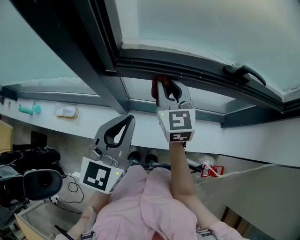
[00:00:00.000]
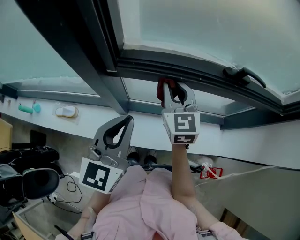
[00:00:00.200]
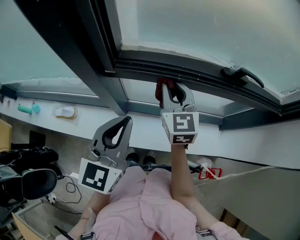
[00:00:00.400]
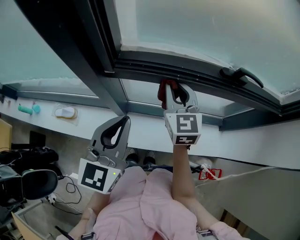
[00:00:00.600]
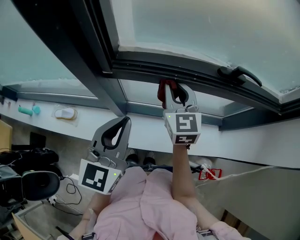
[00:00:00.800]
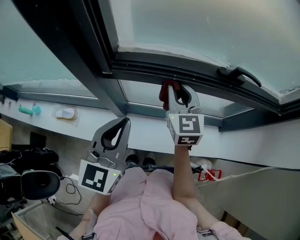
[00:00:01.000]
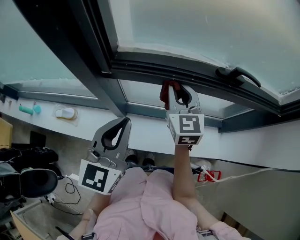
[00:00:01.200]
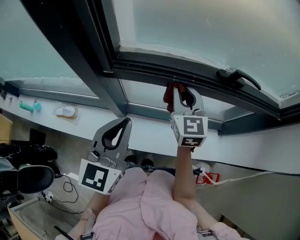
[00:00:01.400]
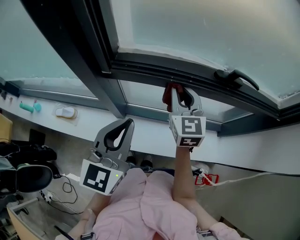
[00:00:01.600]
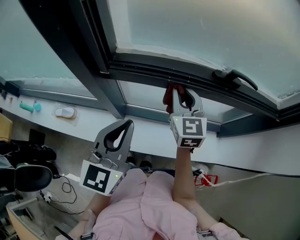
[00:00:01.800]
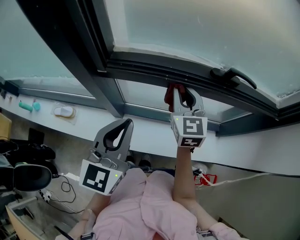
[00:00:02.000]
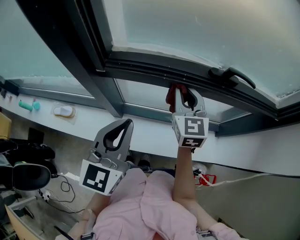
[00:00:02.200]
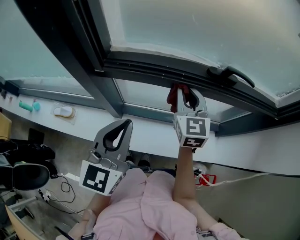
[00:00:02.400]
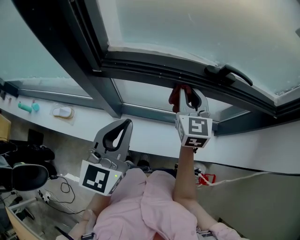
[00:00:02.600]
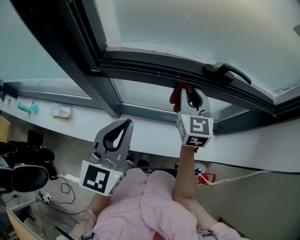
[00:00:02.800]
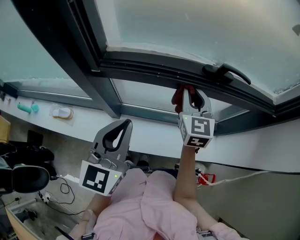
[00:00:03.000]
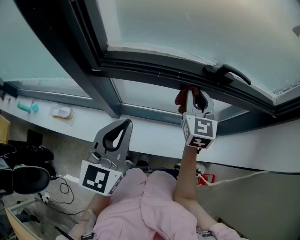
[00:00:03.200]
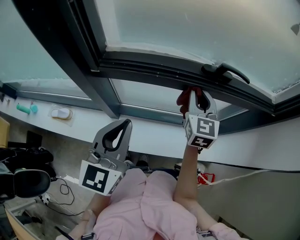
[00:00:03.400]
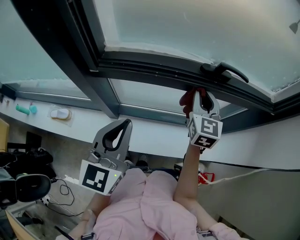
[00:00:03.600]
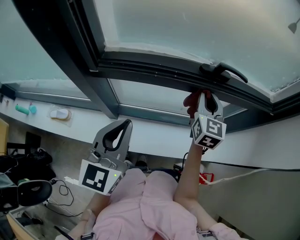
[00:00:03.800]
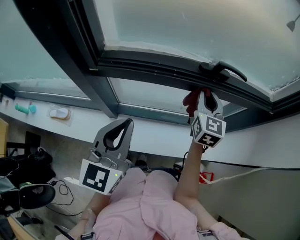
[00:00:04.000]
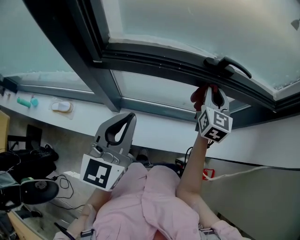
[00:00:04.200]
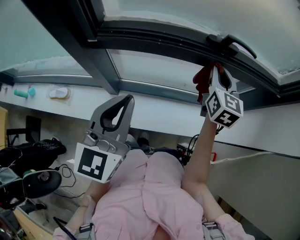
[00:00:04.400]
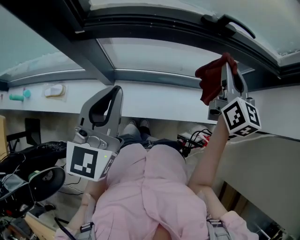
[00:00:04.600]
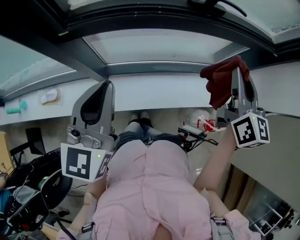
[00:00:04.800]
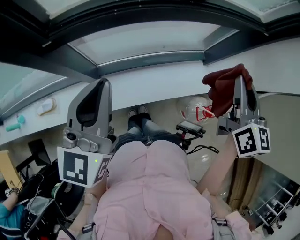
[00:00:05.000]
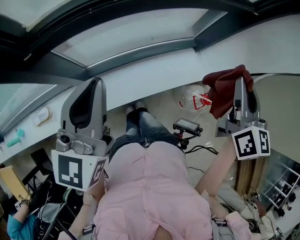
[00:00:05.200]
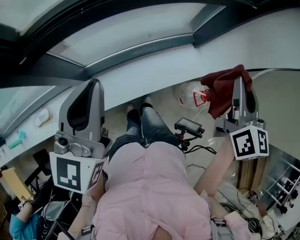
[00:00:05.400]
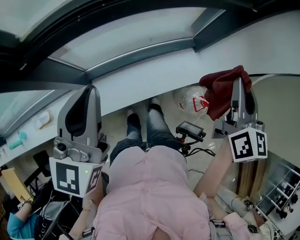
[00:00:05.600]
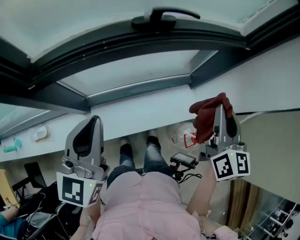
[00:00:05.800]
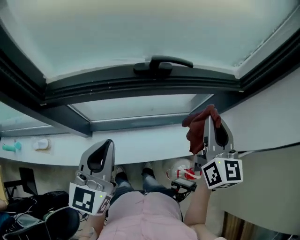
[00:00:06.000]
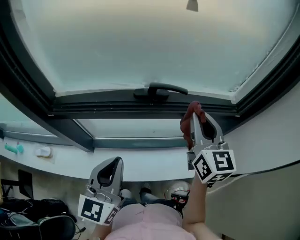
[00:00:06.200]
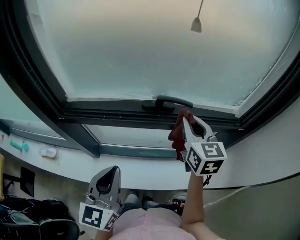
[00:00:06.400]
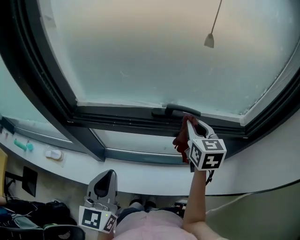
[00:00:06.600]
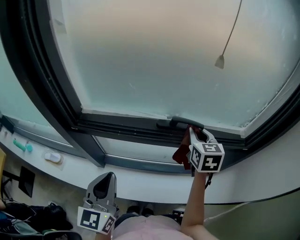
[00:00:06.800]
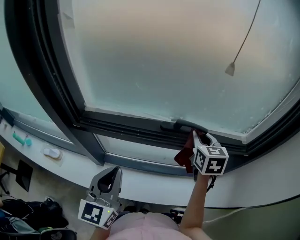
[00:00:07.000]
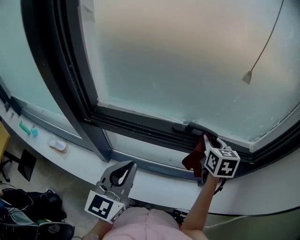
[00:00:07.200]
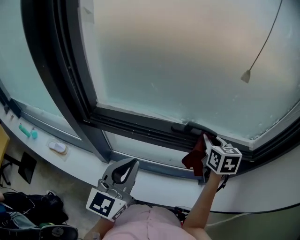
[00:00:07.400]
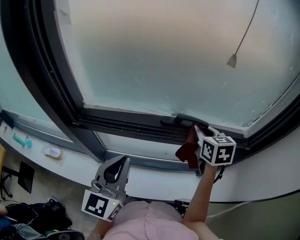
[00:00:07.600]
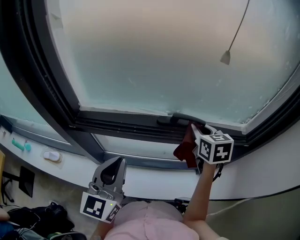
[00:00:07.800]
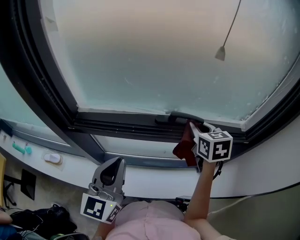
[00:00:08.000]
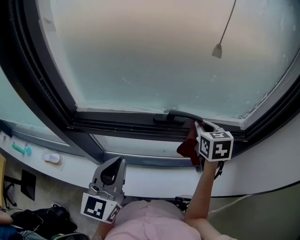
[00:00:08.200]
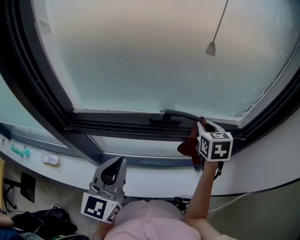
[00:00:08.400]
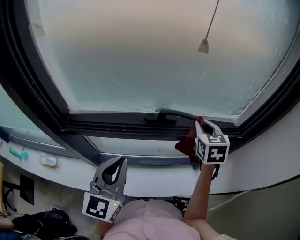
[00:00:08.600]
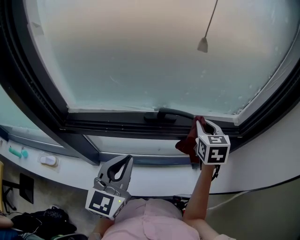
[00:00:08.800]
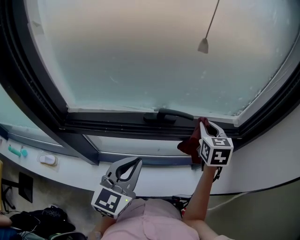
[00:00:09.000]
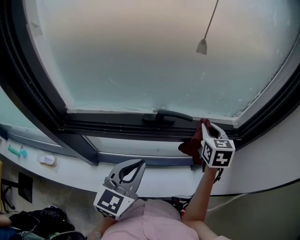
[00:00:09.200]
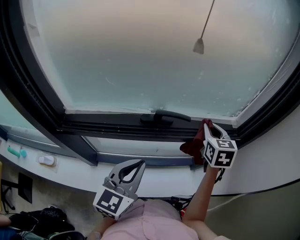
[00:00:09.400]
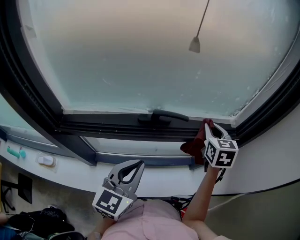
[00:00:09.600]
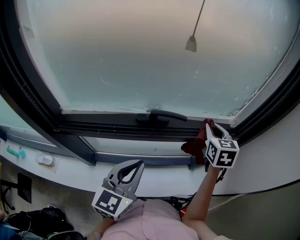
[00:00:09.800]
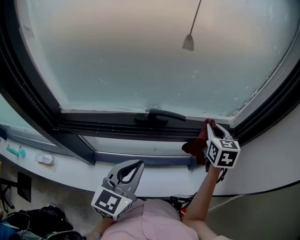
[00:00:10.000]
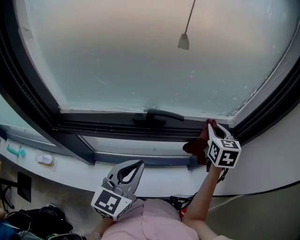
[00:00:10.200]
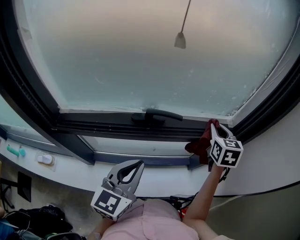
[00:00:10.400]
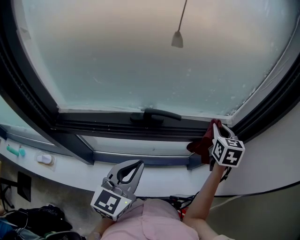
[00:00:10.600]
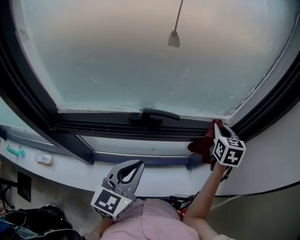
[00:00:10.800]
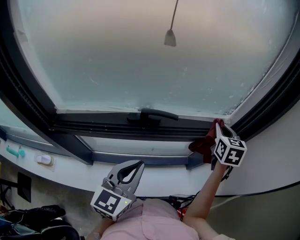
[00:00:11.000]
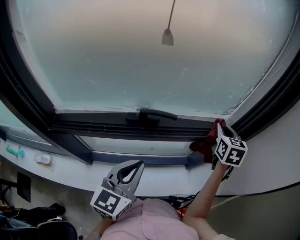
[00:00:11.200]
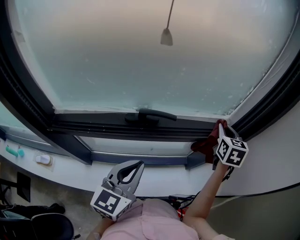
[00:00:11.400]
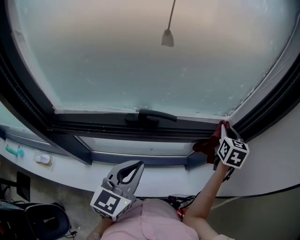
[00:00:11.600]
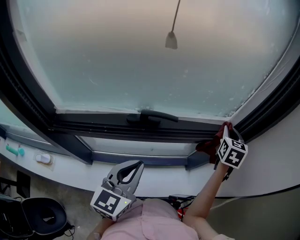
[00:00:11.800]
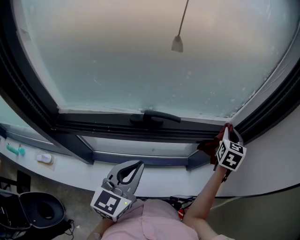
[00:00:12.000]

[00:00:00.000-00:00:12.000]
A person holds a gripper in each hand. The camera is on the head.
00:00:00.000 to 00:00:01.600: The right gripper moves to the right, approximately 5 cm.
00:00:01.600 to 00:00:03.000: The right gripper goes some 10 cm to the right.
00:00:03.000 to 00:00:04.400: The right gripper heads to the right, covering roughly 10 cm.
00:00:04.400 to 00:00:06.000: The left gripper is displaced to the right and forward by some 10 cm. Meanwhile the right gripper moves to the right, roughly 15 cm, and goes backward and returns, roughly 20 cm each way.
00:00:06.000 to 00:00:07.600: The right gripper shifts approximately 20 cm forward and to the left, and rotates some 30 degrees, while the left gripper goes roughly 5 cm upward.
00:00:07.600 to 00:00:09.000: The grippers both shift to the right by about 10 cm.
00:00:09.000 to 00:00:10.400: The right gripper travels to the right by approximately 10 cm; the left gripper shifts by approximately 5 cm.
00:00:10.400 to 00:00:12.000: The right gripper moves to the right, roughly 10 cm.

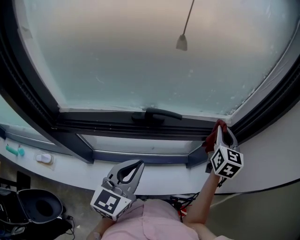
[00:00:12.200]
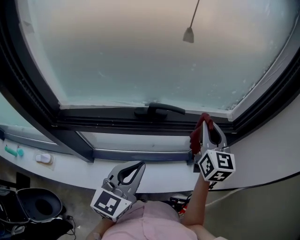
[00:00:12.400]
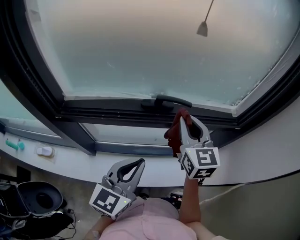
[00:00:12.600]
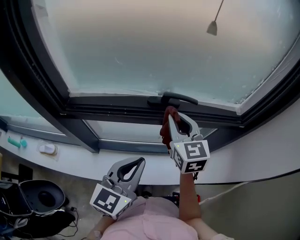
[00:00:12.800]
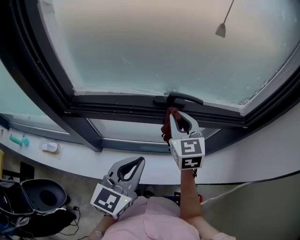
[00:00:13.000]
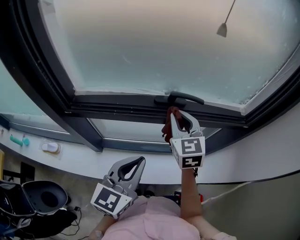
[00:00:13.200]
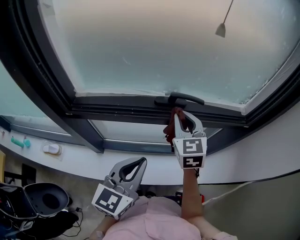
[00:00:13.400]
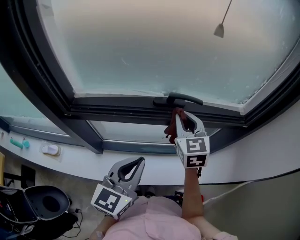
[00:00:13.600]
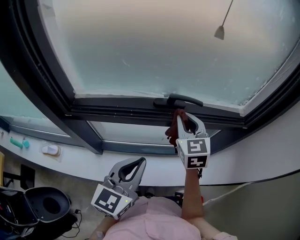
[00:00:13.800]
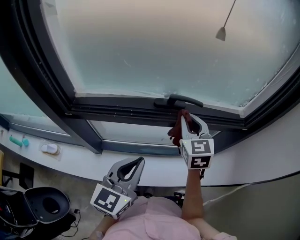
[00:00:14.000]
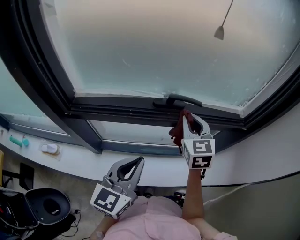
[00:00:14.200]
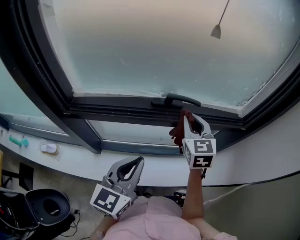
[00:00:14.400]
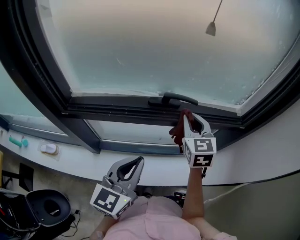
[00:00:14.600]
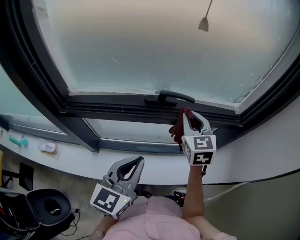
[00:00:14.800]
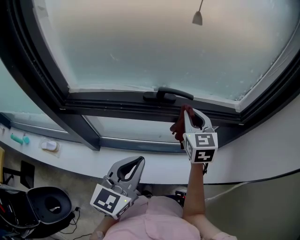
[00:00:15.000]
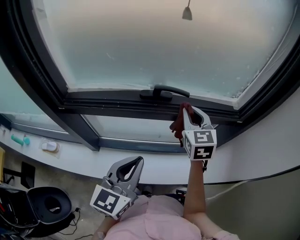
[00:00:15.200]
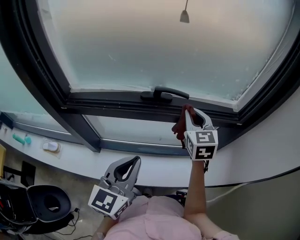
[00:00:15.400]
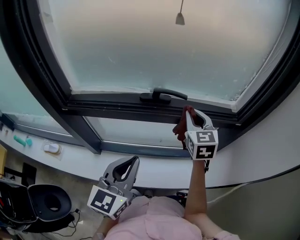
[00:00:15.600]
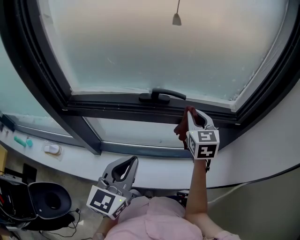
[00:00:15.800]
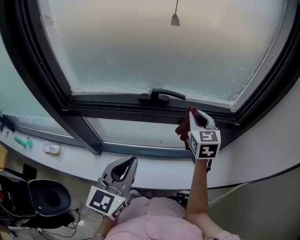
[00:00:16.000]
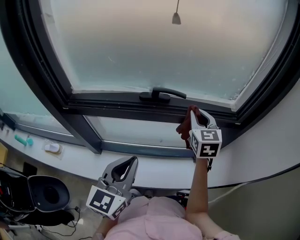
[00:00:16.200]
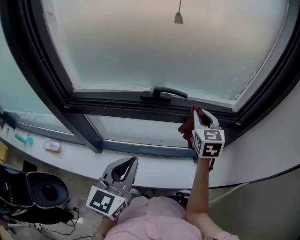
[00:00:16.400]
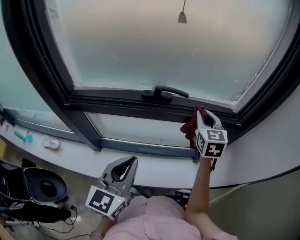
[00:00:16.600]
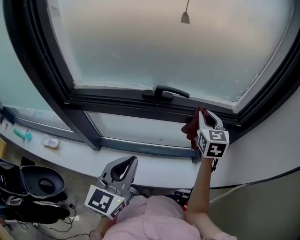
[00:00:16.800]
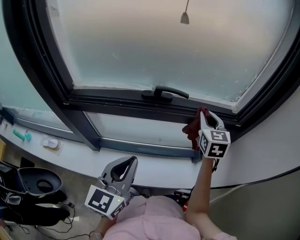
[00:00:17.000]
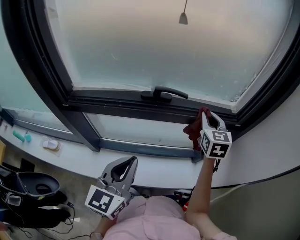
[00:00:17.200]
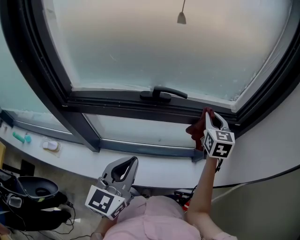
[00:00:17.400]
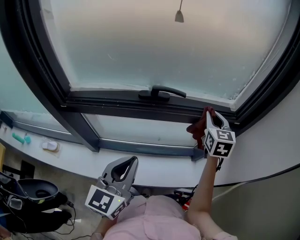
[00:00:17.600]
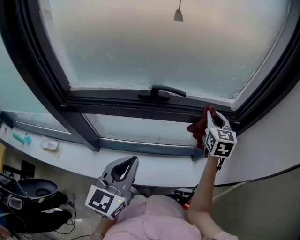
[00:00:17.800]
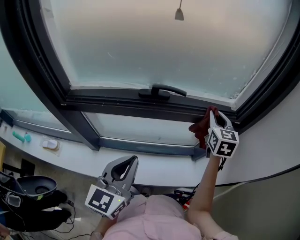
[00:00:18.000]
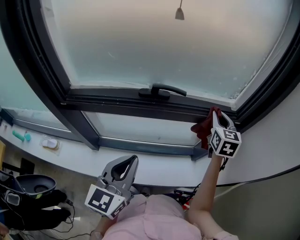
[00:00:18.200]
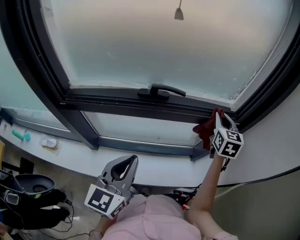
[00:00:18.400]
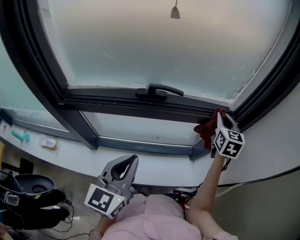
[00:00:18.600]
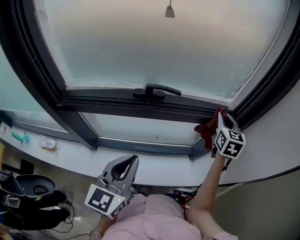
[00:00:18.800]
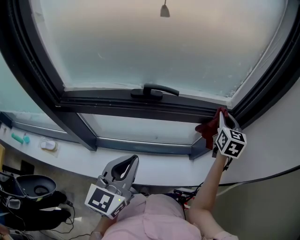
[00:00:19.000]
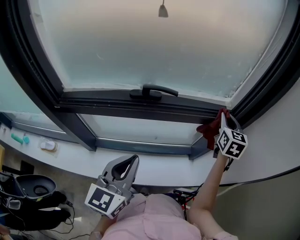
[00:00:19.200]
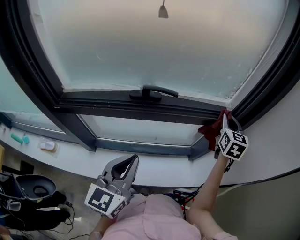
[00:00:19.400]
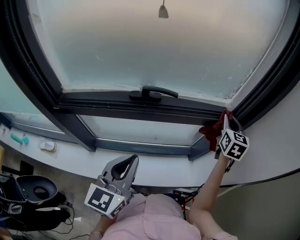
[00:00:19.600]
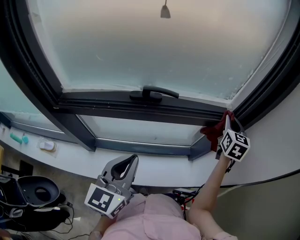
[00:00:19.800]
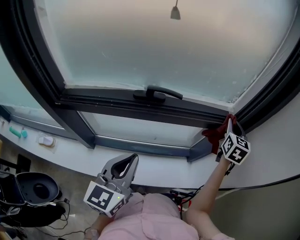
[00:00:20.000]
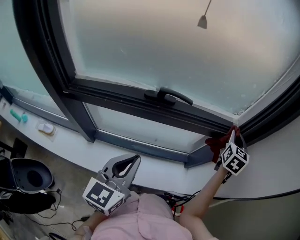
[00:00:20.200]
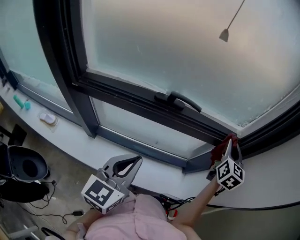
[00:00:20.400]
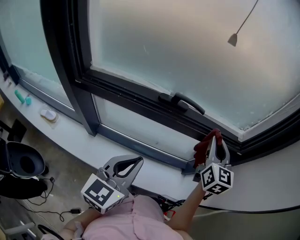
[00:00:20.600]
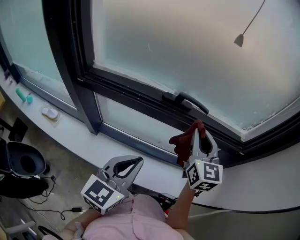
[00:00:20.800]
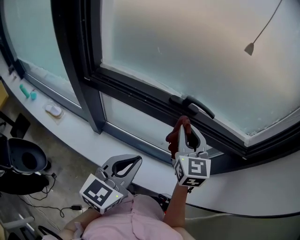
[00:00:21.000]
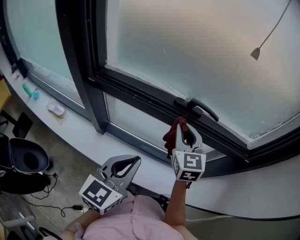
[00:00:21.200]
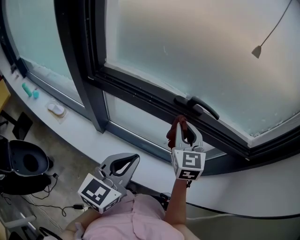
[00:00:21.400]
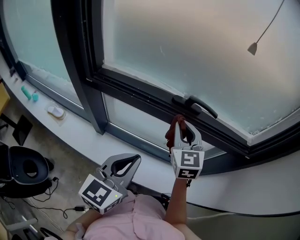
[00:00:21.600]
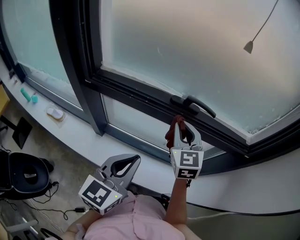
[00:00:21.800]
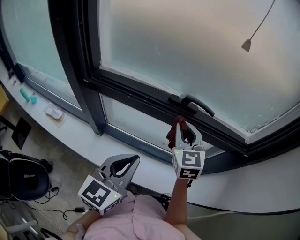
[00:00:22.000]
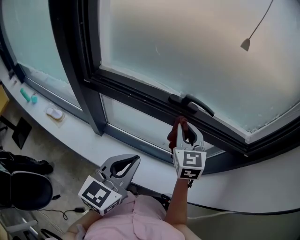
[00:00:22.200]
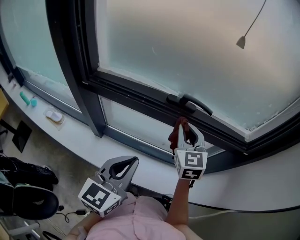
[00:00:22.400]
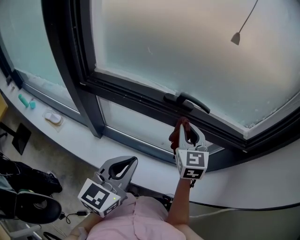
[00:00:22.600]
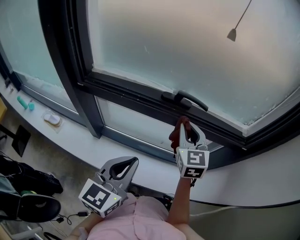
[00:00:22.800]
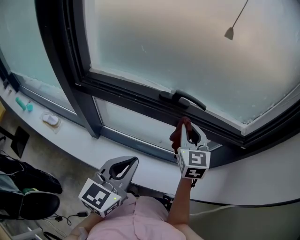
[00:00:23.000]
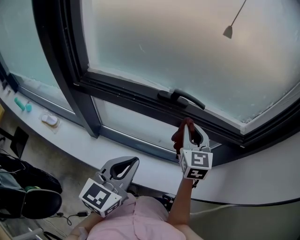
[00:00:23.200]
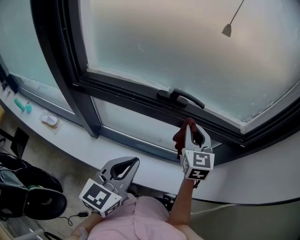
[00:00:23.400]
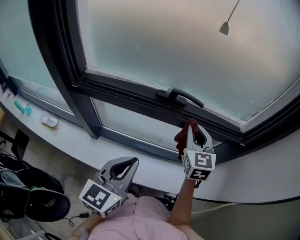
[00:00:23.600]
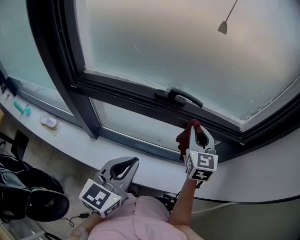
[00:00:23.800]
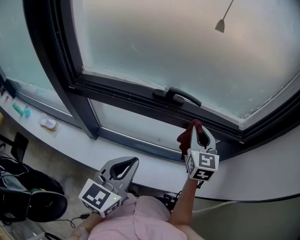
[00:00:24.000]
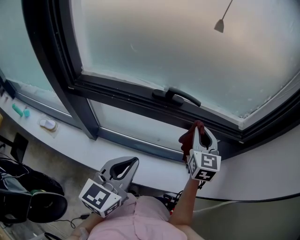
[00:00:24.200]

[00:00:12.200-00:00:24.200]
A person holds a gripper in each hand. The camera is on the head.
00:00:12.200 to 00:00:13.800: The left gripper moves to the left and backward, some 10 cm, while the right gripper shifts about 25 cm to the left, and swivels approximately 30 degrees.
00:00:13.800 to 00:00:15.200: Both grippers travel together to the right, roughly 5 cm.
00:00:15.200 to 00:00:16.600: The right gripper heads to the right, covering roughly 5 cm.
00:00:16.600 to 00:00:18.200: The right gripper travels to the right by about 10 cm.
00:00:18.200 to 00:00:19.800: The right gripper goes approximately 10 cm to the right.
00:00:19.800 to 00:00:21.200: The right gripper travels to the left by roughly 35 cm, and changes its angle by approximately 40 degrees, while the left gripper goes roughly 5 cm to the left.
00:00:21.200 to 00:00:22.600: The grippers make only small movements.
00:00:22.600 to 00:00:24.200: The right gripper goes some 10 cm to the right.
